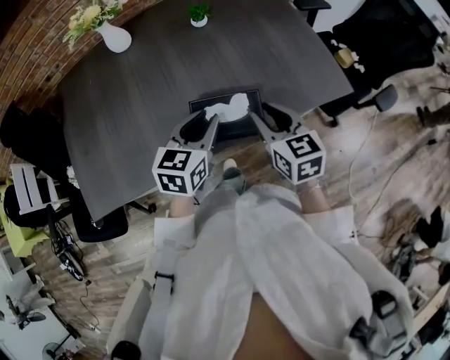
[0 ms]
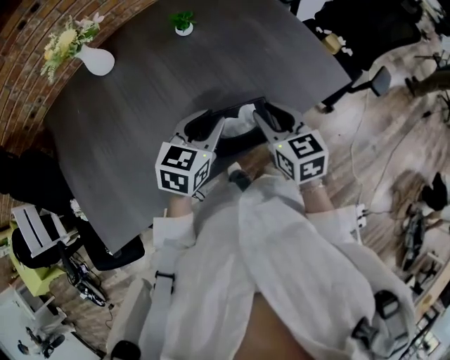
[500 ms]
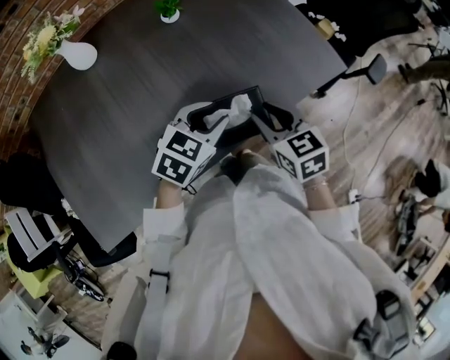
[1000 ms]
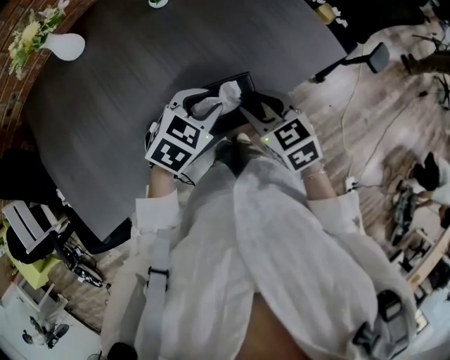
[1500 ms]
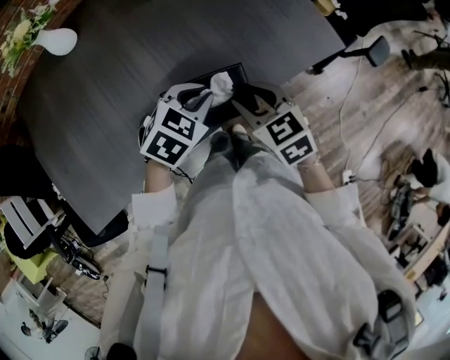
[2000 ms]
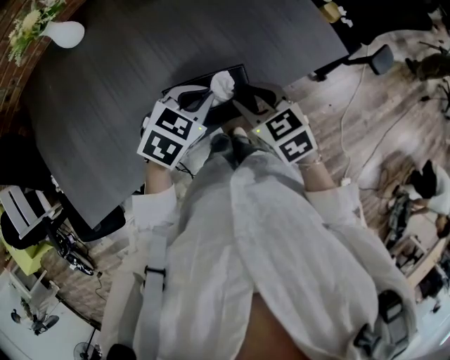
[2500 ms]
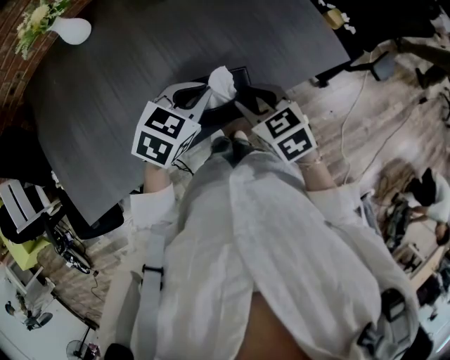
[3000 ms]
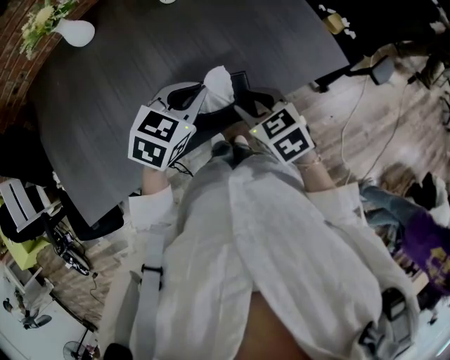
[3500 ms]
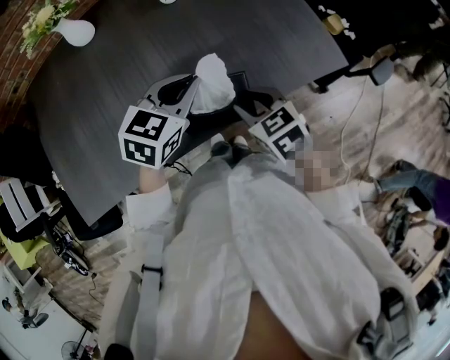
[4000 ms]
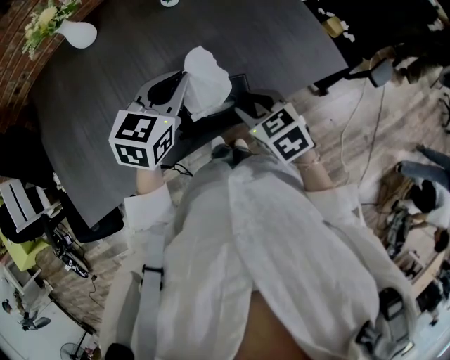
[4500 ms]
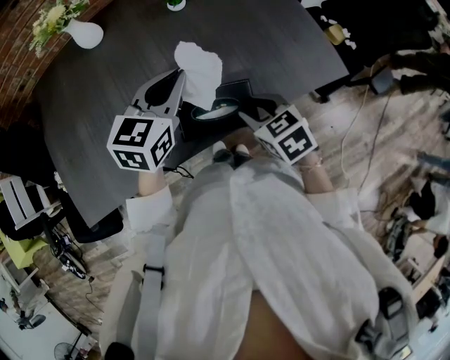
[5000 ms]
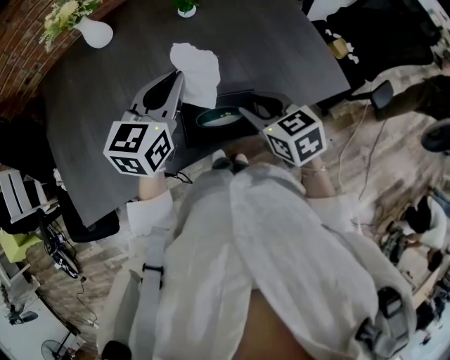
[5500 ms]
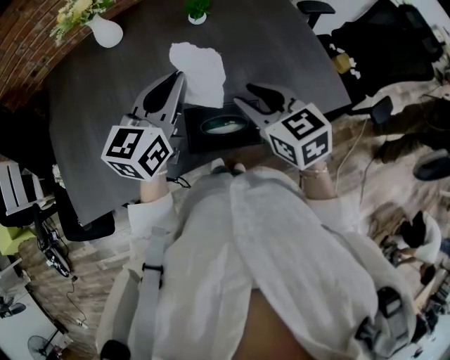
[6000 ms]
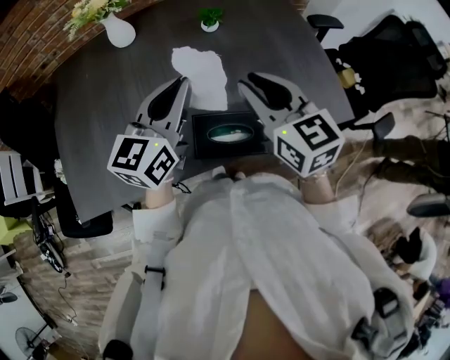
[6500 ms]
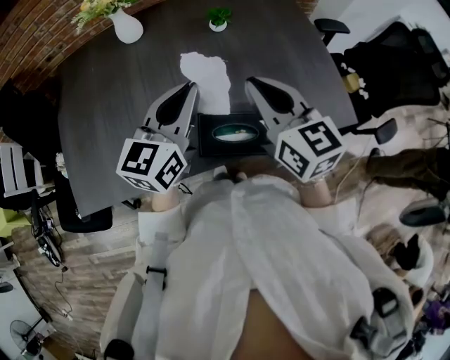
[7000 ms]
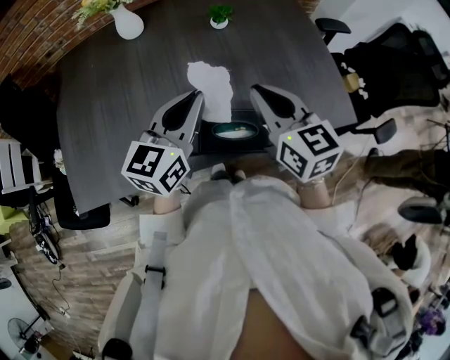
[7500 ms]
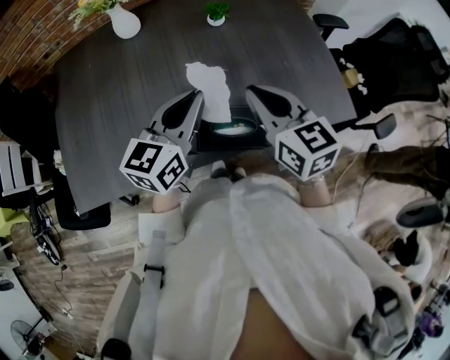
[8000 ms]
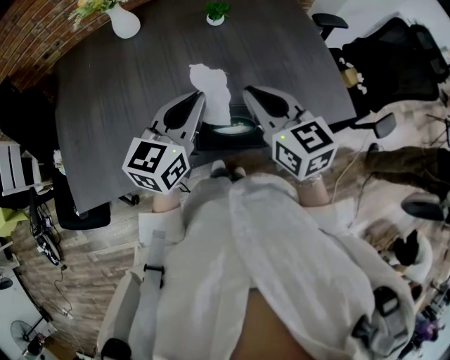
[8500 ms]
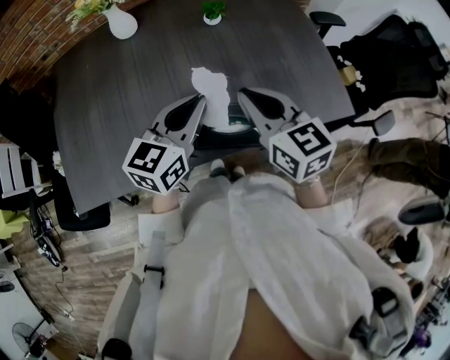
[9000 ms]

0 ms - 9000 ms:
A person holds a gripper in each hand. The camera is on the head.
0 ms - 2000 ms: The grippers both shift downward by some 5 cm. The left gripper turns by roughly 40 degrees.
2000 ms - 4500 ms: The left gripper is displaced upward by some 10 cm, and turns by some 30 degrees.
4500 ms - 7000 ms: The left gripper is displaced upward and to the left by some 10 cm, and changes its angle by about 30 degrees; the right gripper is displaced upward and forward by roughly 20 cm, angles its fingers upward, by approximately 40 degrees, and closes its fingers.
7000 ms - 9000 ms: The left gripper changes place by some 5 cm.

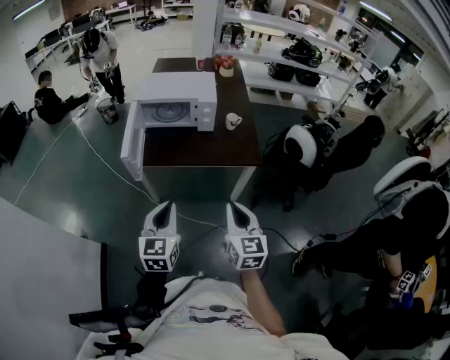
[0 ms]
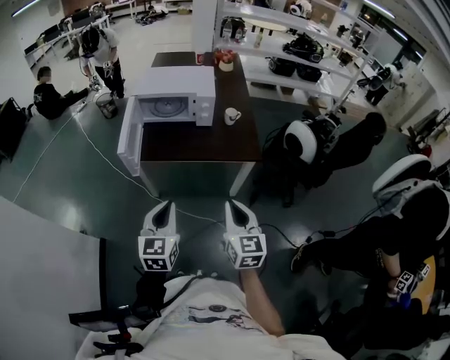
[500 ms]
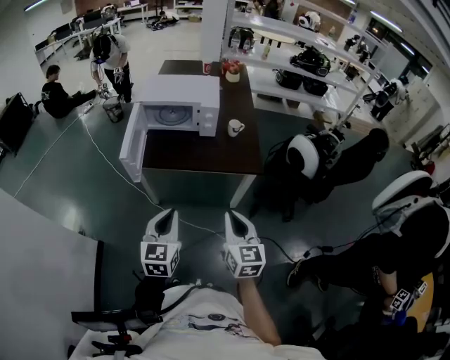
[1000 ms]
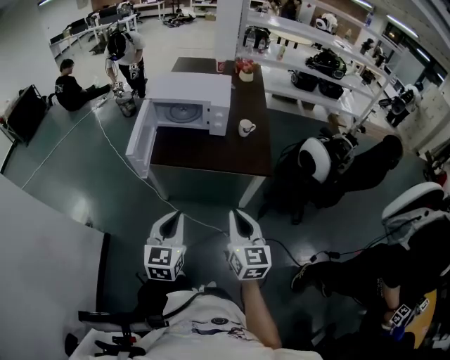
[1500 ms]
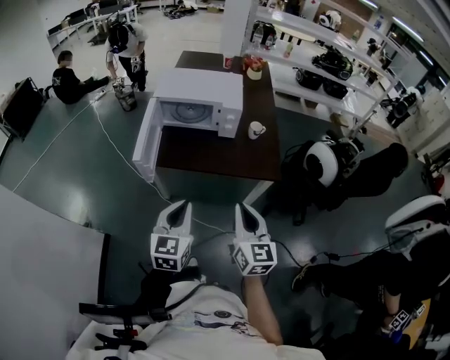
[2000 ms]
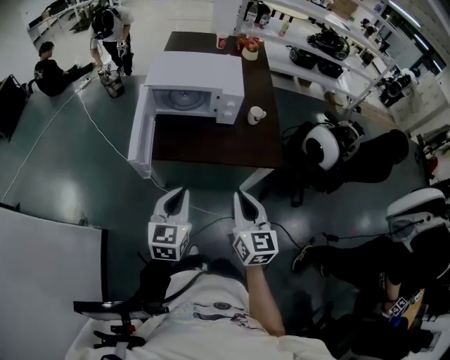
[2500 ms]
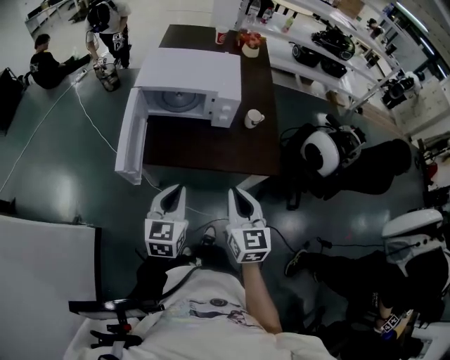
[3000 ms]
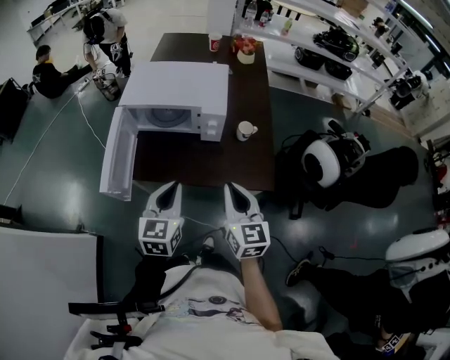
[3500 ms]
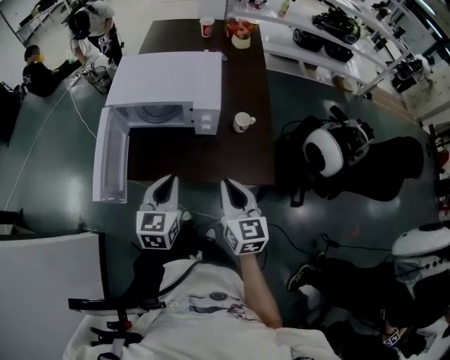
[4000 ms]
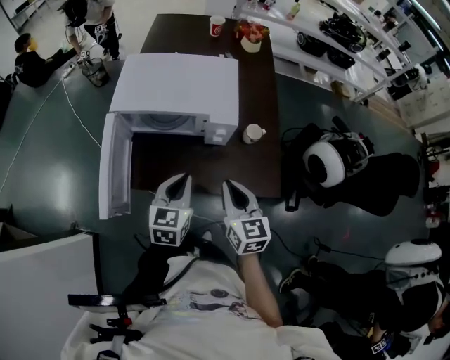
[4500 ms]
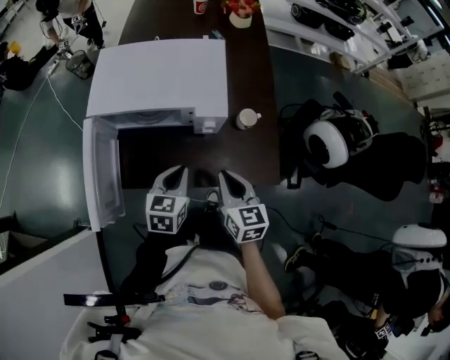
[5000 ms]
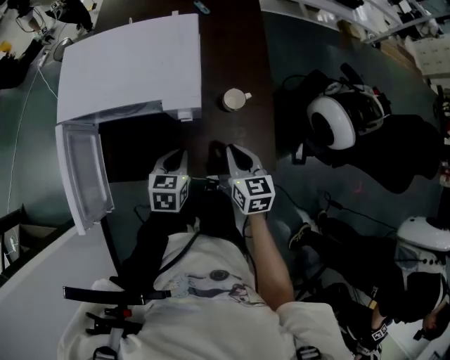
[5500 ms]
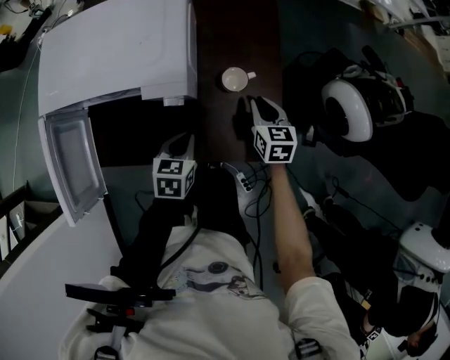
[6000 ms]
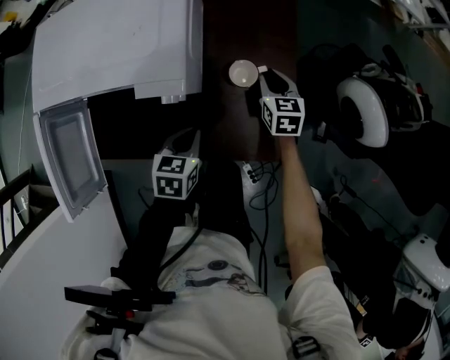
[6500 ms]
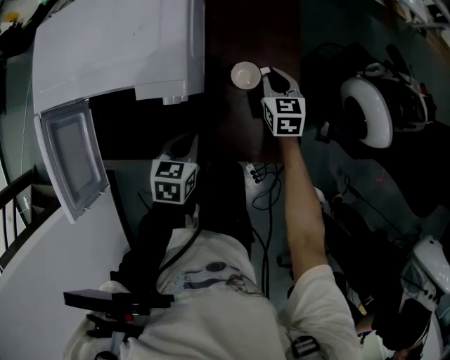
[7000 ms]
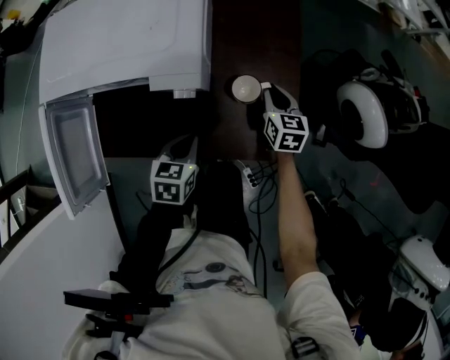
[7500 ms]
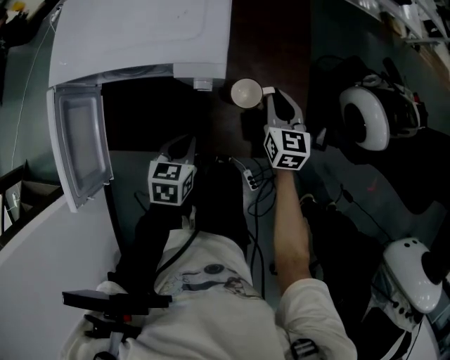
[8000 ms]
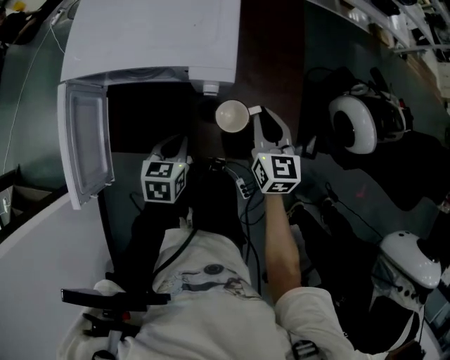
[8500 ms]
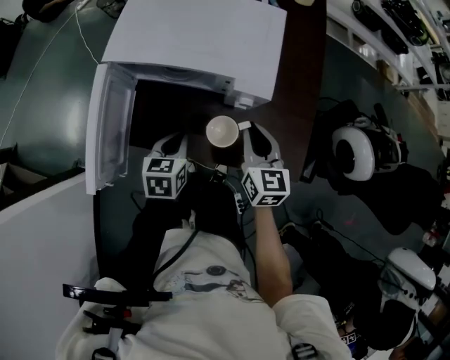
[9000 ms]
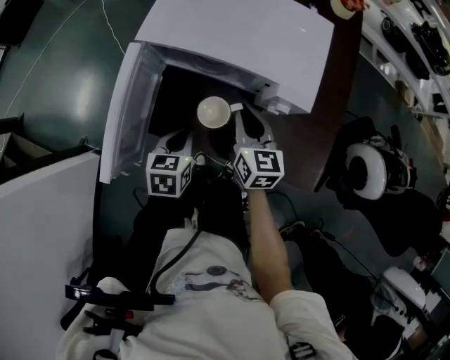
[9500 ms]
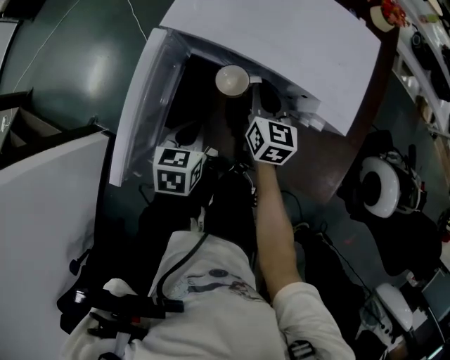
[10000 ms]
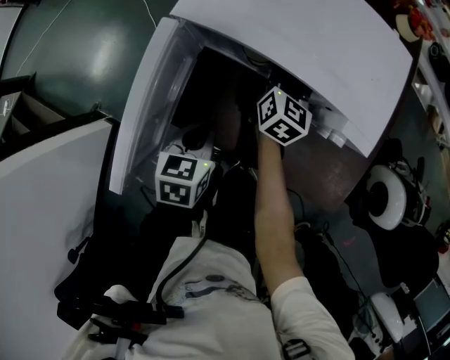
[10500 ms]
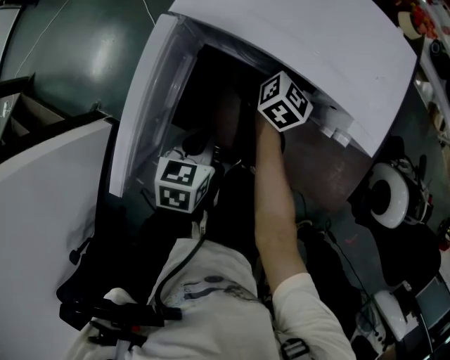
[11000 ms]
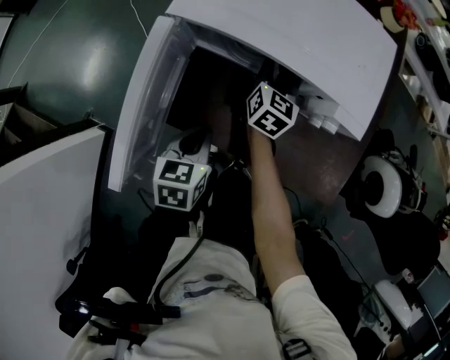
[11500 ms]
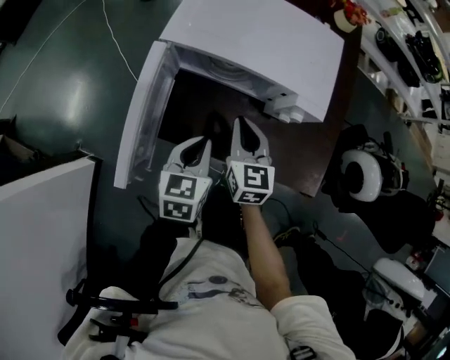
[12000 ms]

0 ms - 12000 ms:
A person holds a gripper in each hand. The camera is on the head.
0 ms - 2000 ms: Both grippers travel together forward, about 5 cm.
2000 ms - 4000 ms: The grippers both shift forward by about 20 cm.
4000 ms - 6000 ms: The left gripper travels downward, forward and to the right by about 25 cm, and swivels some 30 degrees, while the right gripper travels forward, downward and to the right by about 35 cm, and rotates some 20 degrees.
6000 ms - 8000 ms: The right gripper goes forward and returns, approximately 5 cm each way, while the left gripper heads to the left, covering about 5 cm.
8000 ms - 10000 ms: The left gripper moves to the left, approximately 20 cm, and turns by some 20 degrees; the right gripper goes roughly 30 cm to the left.
10000 ms - 12000 ms: The right gripper travels backward and upward by approximately 10 cm, and opens, then closes again. The left gripper moves upward, about 10 cm.

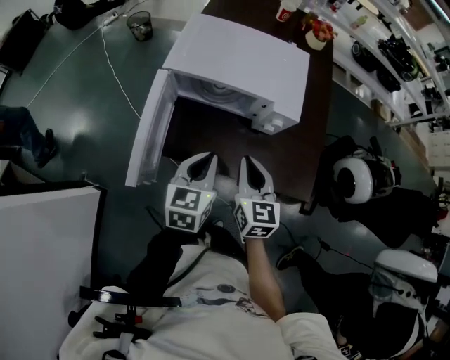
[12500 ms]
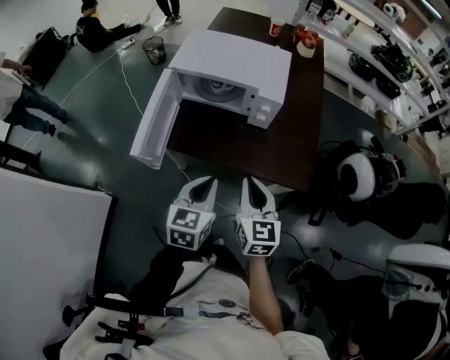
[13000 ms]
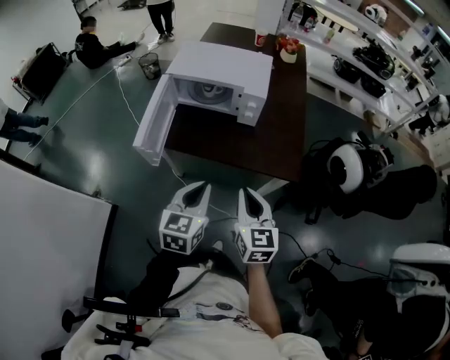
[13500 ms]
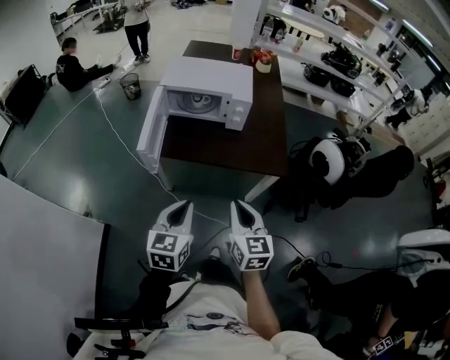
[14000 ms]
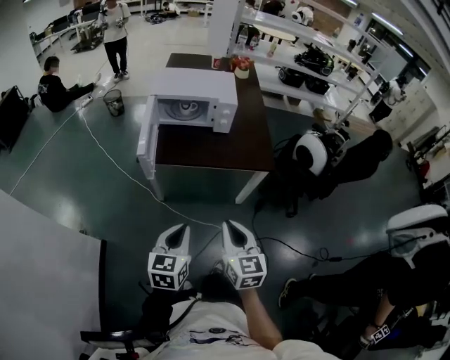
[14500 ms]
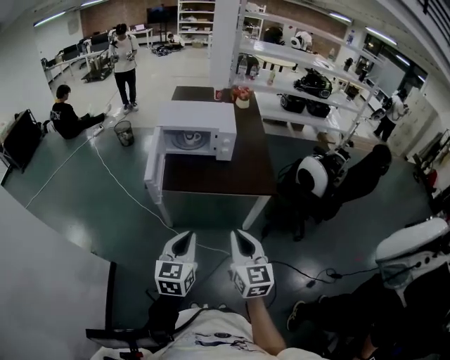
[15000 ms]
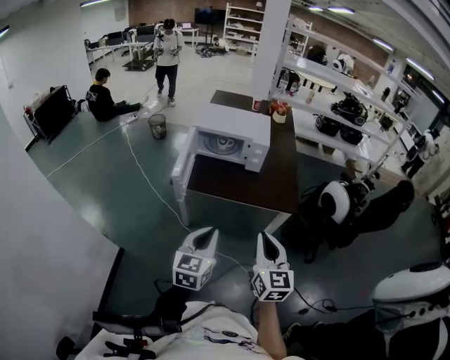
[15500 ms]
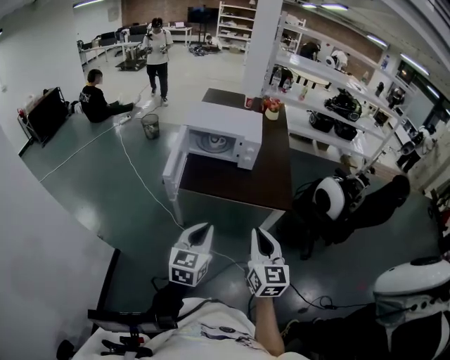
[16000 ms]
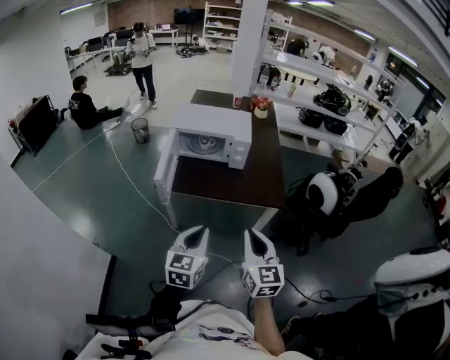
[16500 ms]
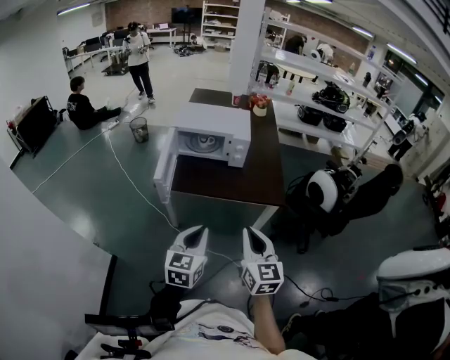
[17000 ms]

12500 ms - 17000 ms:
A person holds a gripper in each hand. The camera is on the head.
12500 ms - 14500 ms: Both grippers move backward, roughly 40 cm.
14500 ms - 17000 ms: The right gripper is displaced upward by roughly 5 cm; the left gripper travels forward by some 5 cm.

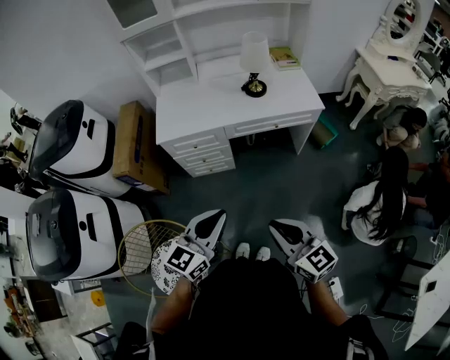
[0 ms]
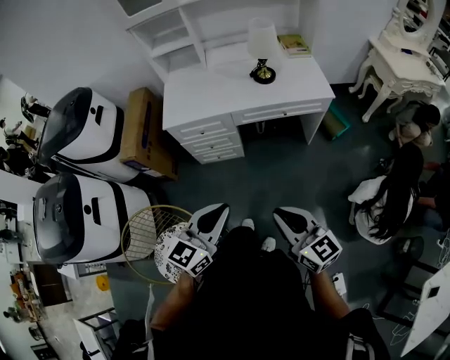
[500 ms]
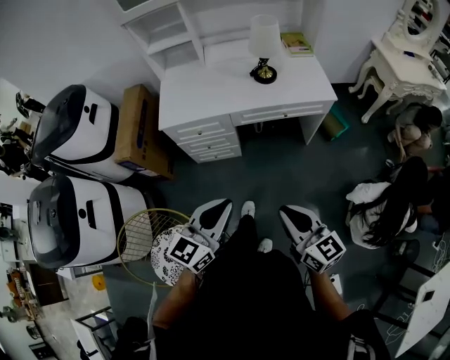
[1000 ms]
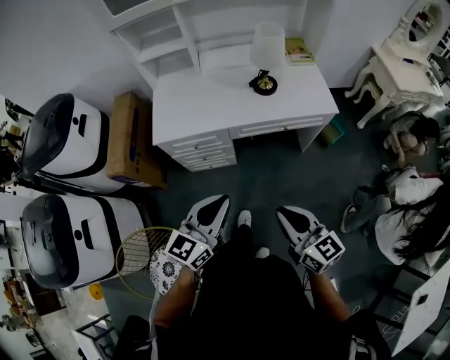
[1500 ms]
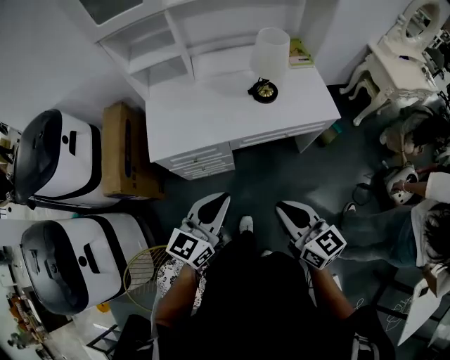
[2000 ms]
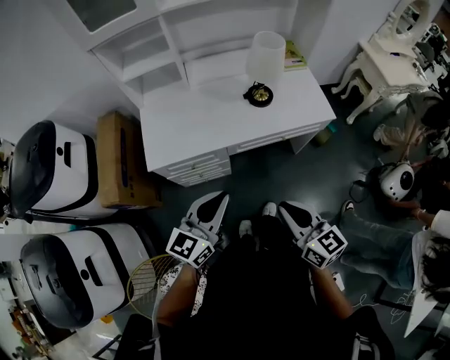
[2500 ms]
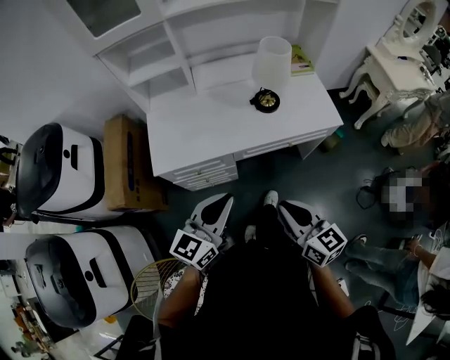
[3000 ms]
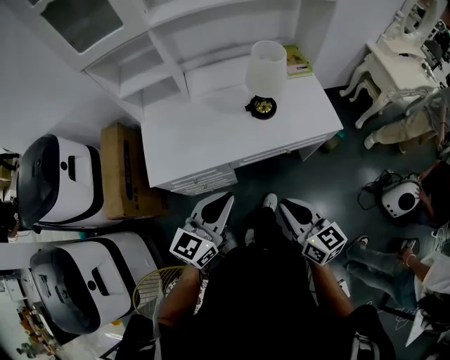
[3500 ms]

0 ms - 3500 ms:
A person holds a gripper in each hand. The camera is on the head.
0 ms - 2000 ms: Both grippers travel together forward, some 20 cm.
2000 ms - 3500 ms: Both grippers travel together forward, approximately 10 cm.
